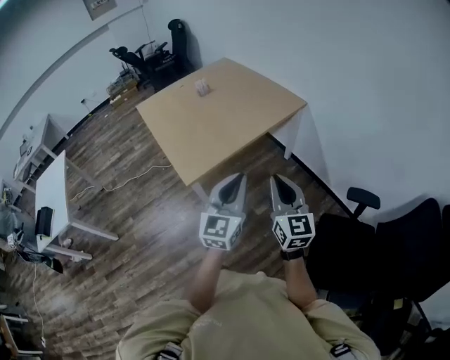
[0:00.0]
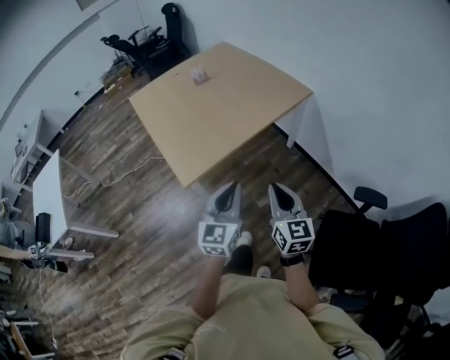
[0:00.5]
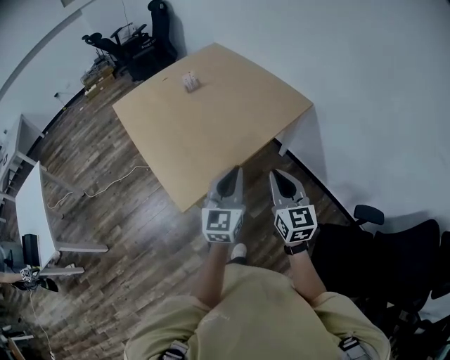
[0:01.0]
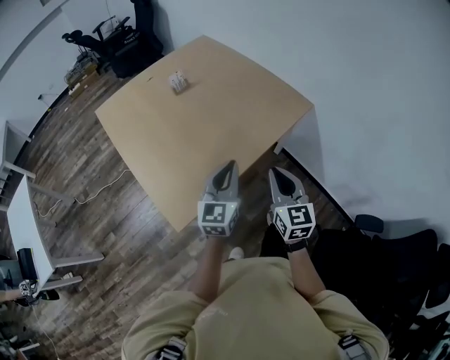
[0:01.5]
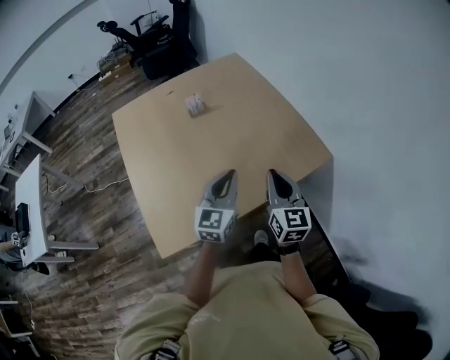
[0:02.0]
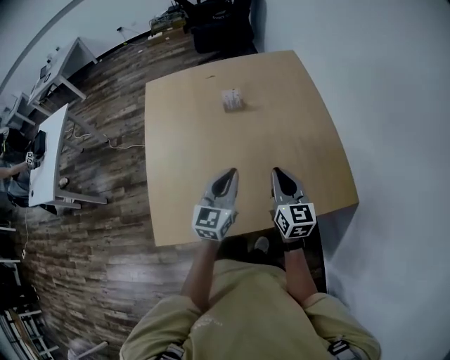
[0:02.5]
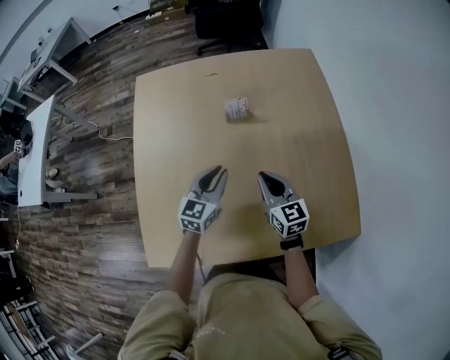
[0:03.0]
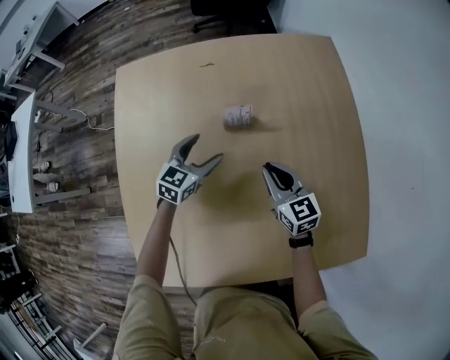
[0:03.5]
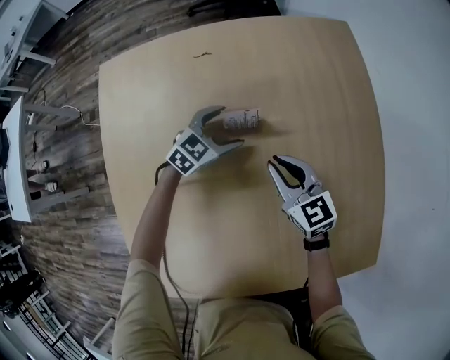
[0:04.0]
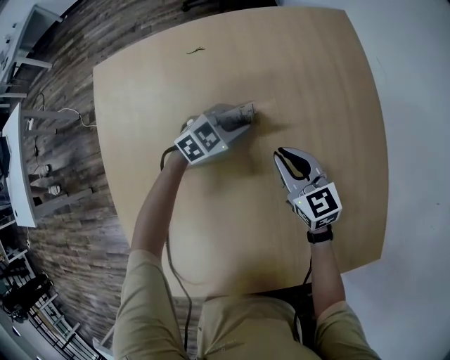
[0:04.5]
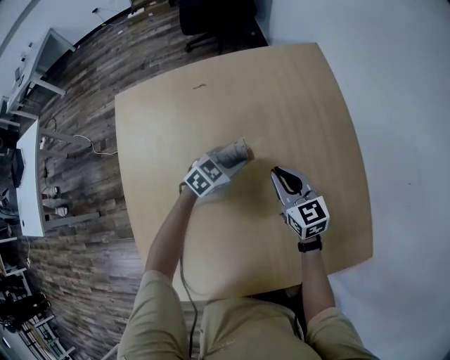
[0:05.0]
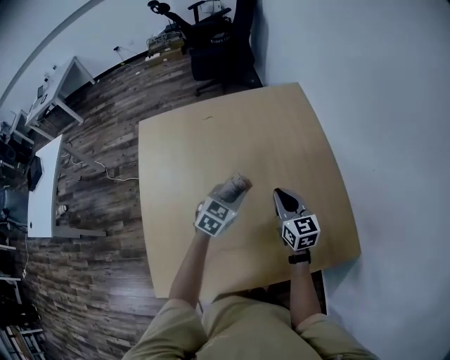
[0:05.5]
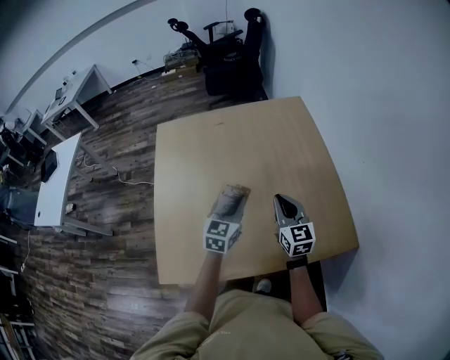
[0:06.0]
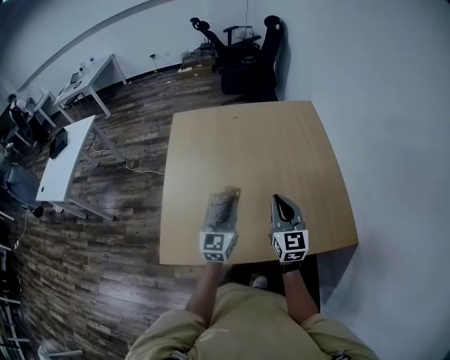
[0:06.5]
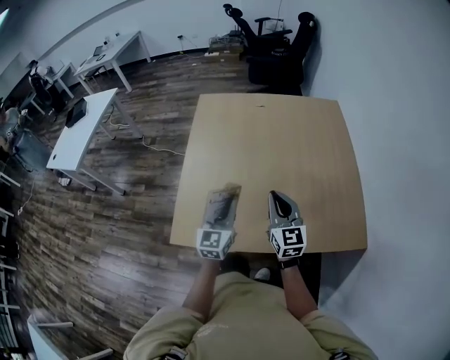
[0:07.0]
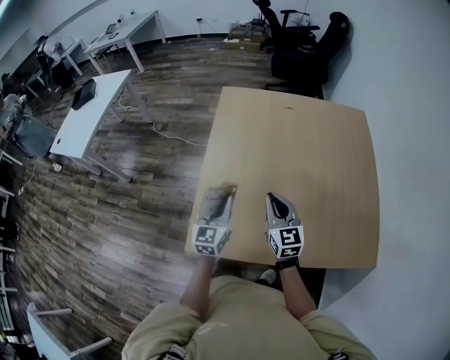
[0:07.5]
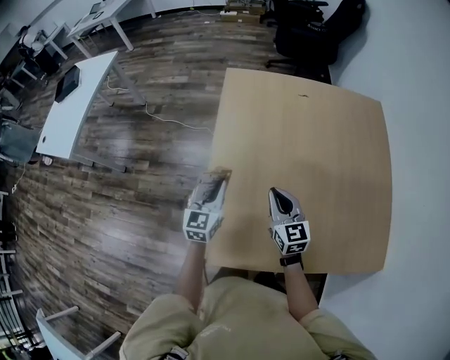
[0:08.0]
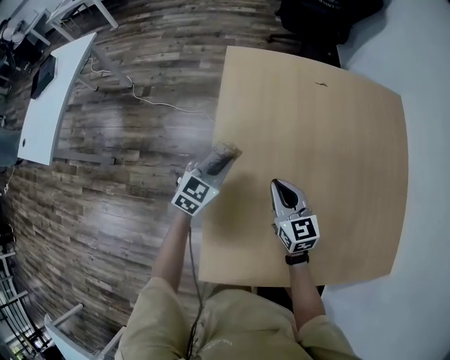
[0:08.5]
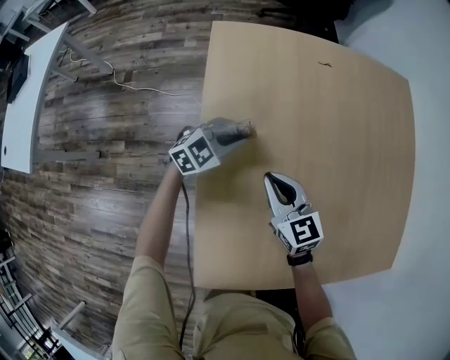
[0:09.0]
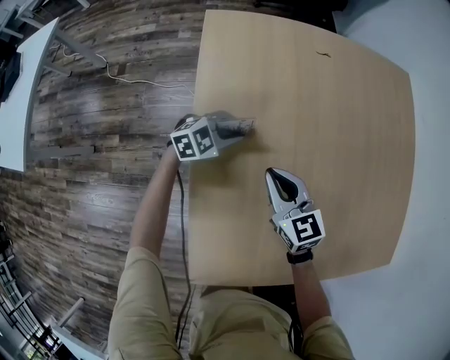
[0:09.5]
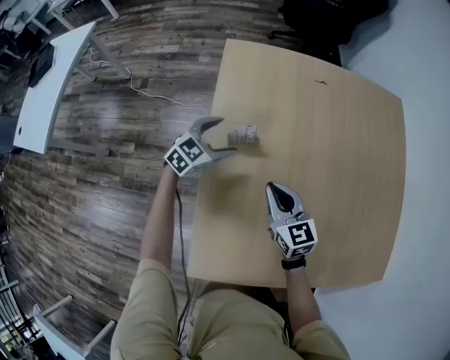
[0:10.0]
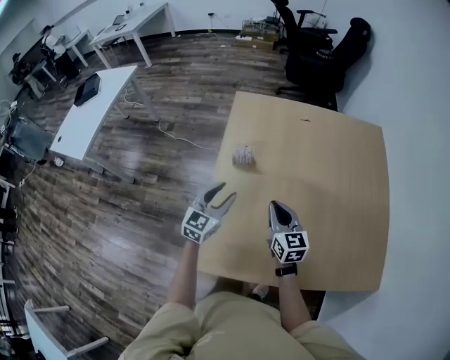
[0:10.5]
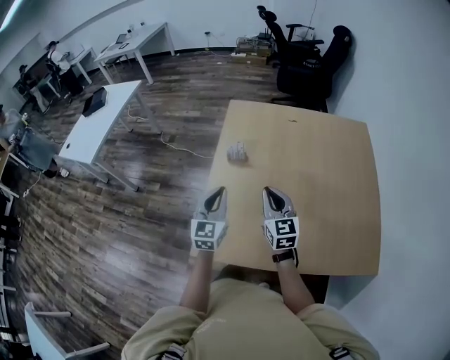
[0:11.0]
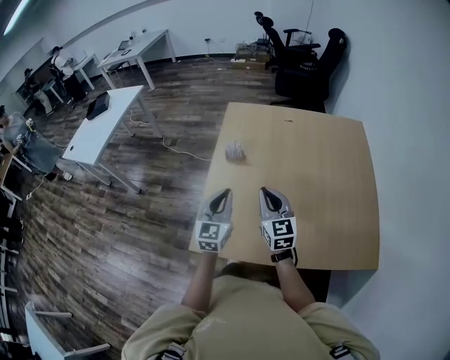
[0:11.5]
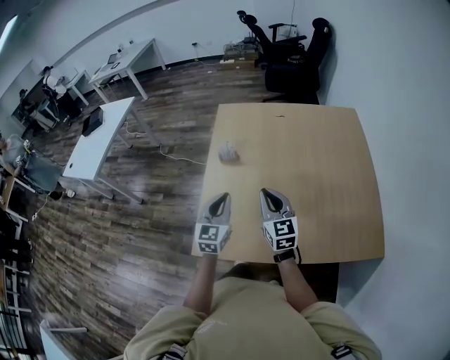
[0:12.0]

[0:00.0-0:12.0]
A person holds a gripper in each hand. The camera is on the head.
0:00.0 to 0:02.0: The two grippers travel together, forward, approximately 60 cm.
0:02.0 to 0:04.0: The two grippers travel together, approximately 50 cm. The right gripper swivels roughly 50 degrees, while the left gripper rotates some 30 degrees, and opens.
0:04.0 to 0:06.0: The right gripper travels backward, upward and to the right by approximately 35 cm, and swivels roughly 20 degrees, while the left gripper goes roughly 40 cm backward and upward, rotates approximately 40 degrees, and closes its fingers.
0:06.0 to 0:08.0: Both grippers travel together to the left, roughly 40 cm. The left gripper turns by approximately 20 degrees.
0:08.0 to 0:10.0: The left gripper moves about 25 cm, rotates some 40 degrees, and opens its fingers, while the right gripper moves approximately 15 cm.
0:10.0 to 0:12.0: The right gripper moves backward, upward and to the right, roughly 30 cm. Meanwhile the left gripper moves backward and upward, some 40 cm, rotates approximately 40 degrees, and closes.

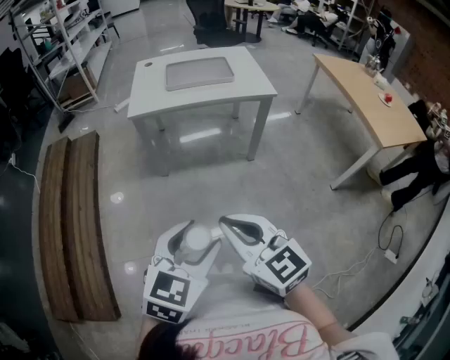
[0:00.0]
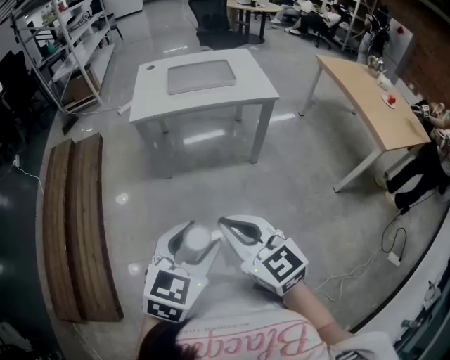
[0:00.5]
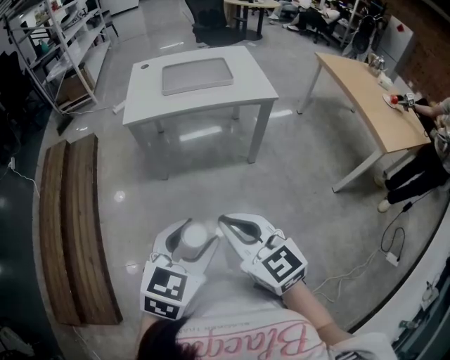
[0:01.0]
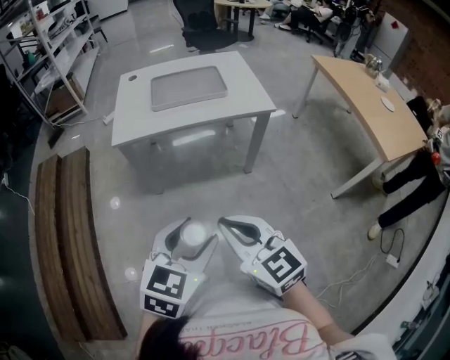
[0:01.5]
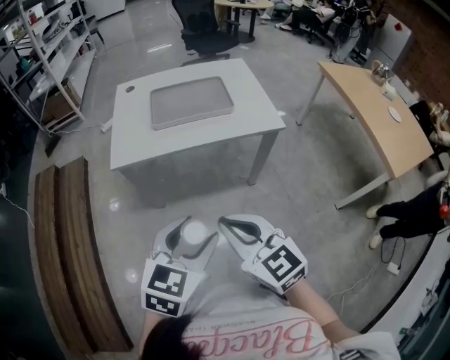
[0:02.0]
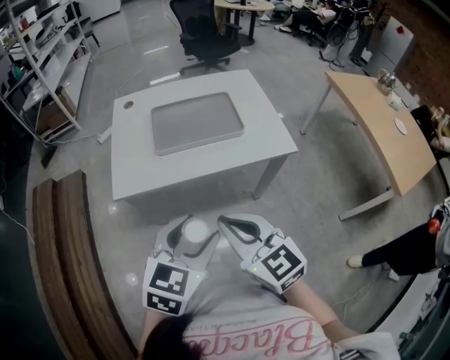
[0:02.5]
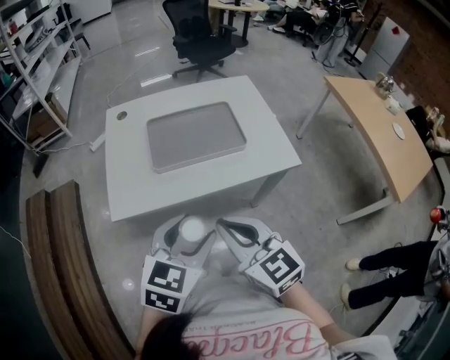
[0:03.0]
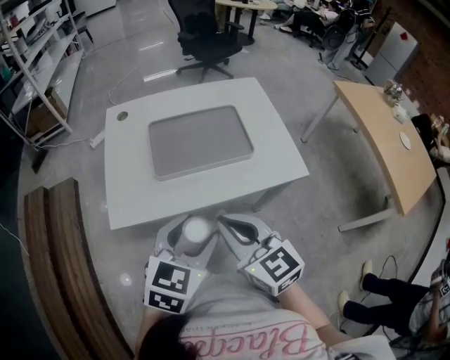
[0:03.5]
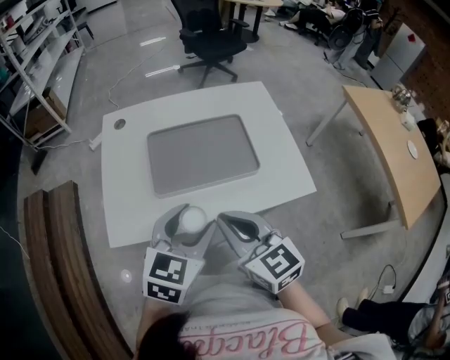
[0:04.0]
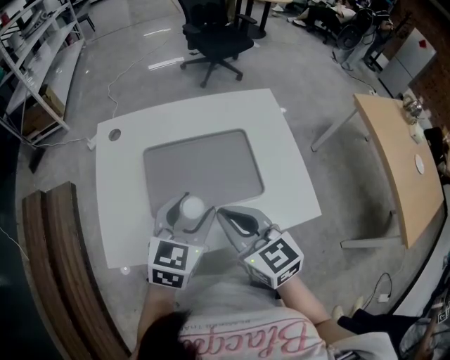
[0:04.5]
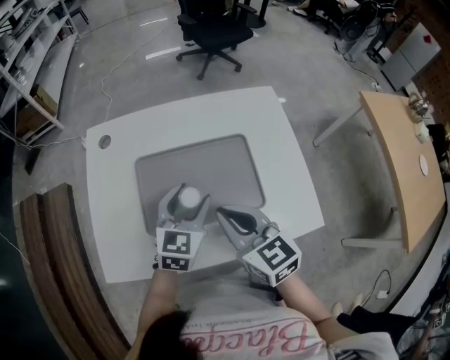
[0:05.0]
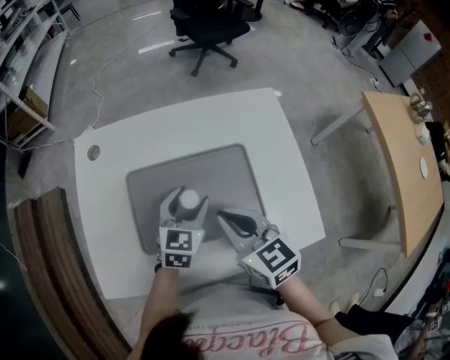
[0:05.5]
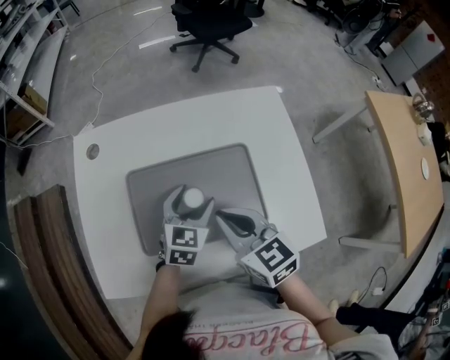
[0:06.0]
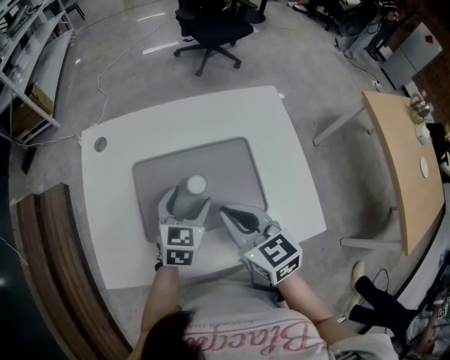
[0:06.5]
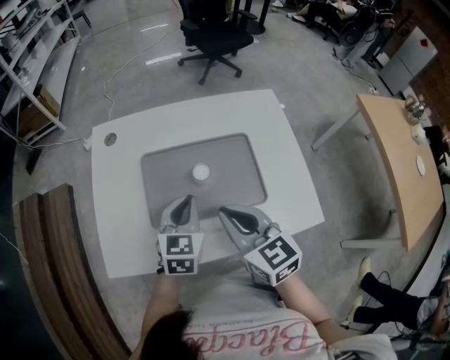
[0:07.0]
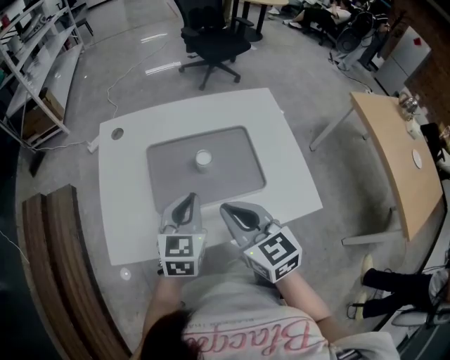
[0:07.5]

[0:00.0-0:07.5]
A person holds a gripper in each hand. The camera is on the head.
0:00.0 to 0:02.0: Both grippers move forward, some 20 cm.
0:02.0 to 0:04.0: The grippers both shift forward by some 25 cm.
0:04.0 to 0:05.5: The left gripper moves forward and downward, about 25 cm, while the right gripper goes about 15 cm forward.
0:05.5 to 0:07.5: The left gripper shifts approximately 10 cm backward and upward, and closes up. The right gripper moves backward, roughly 5 cm.

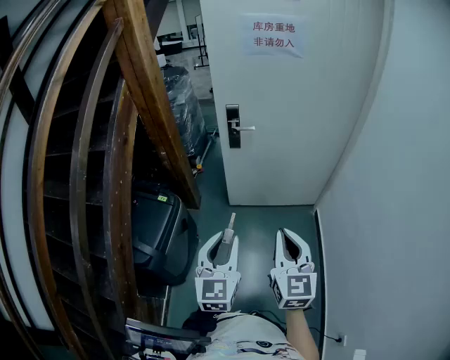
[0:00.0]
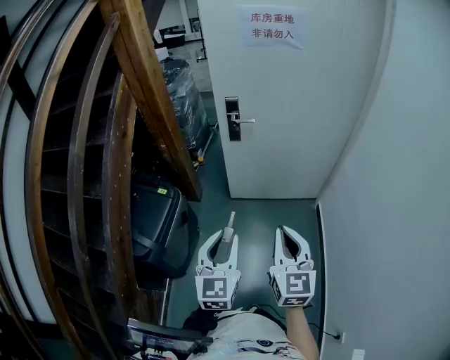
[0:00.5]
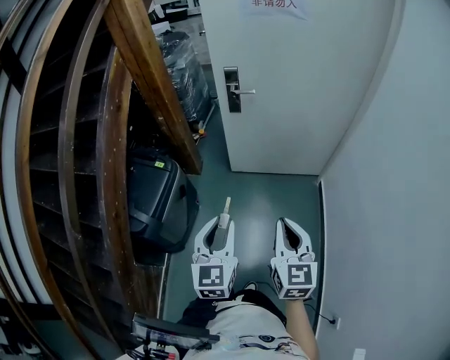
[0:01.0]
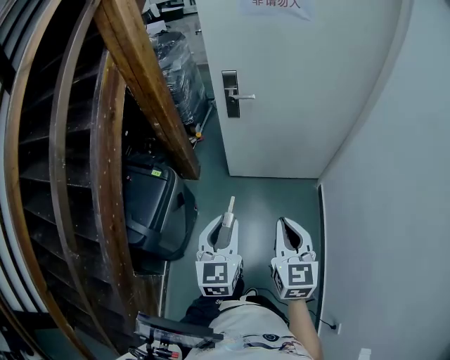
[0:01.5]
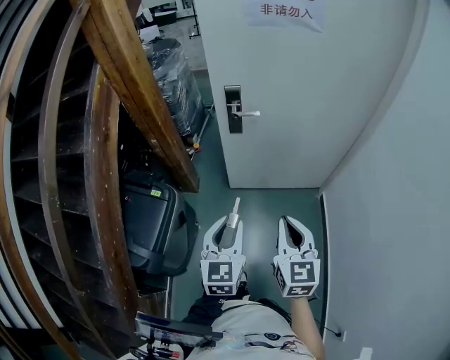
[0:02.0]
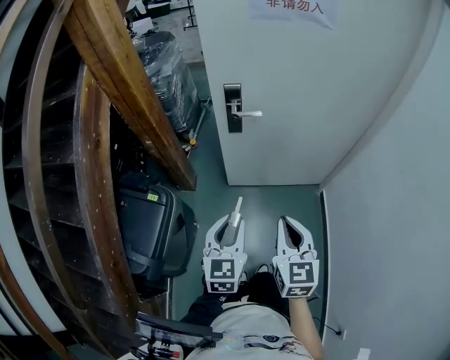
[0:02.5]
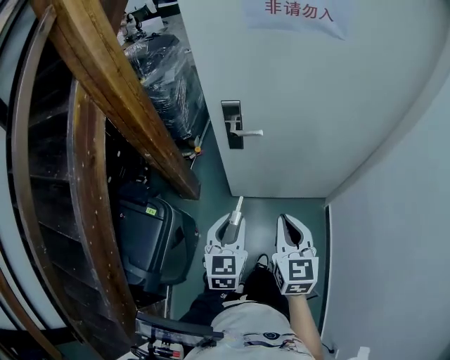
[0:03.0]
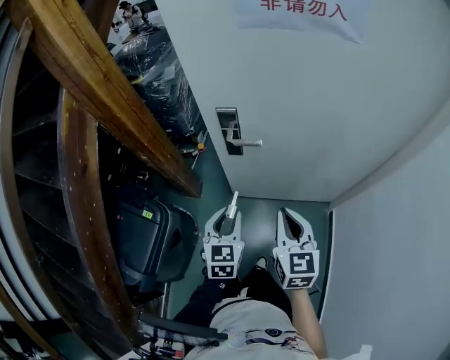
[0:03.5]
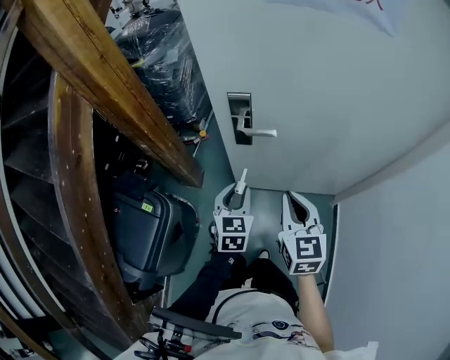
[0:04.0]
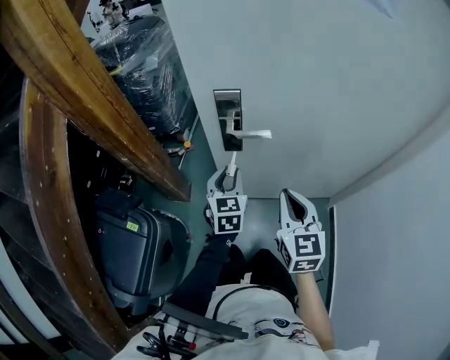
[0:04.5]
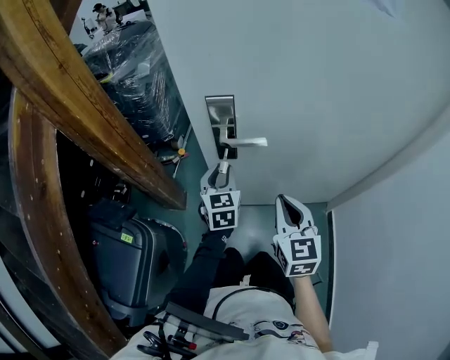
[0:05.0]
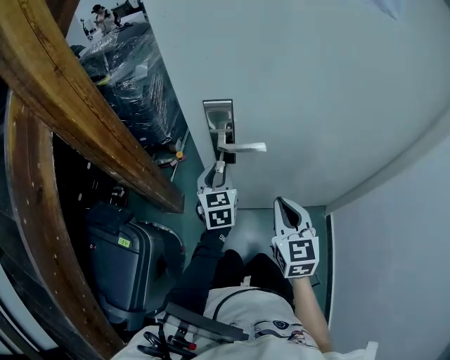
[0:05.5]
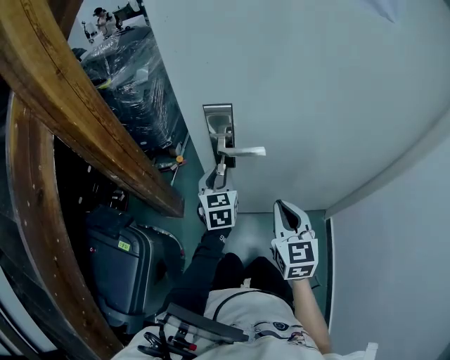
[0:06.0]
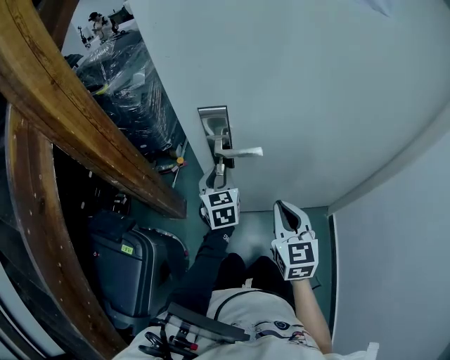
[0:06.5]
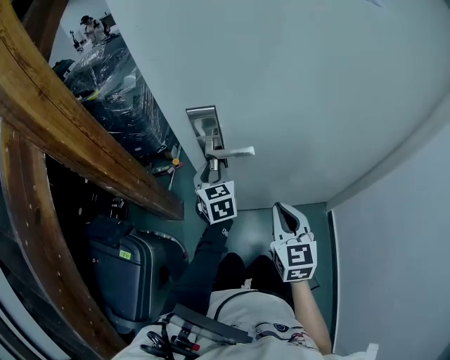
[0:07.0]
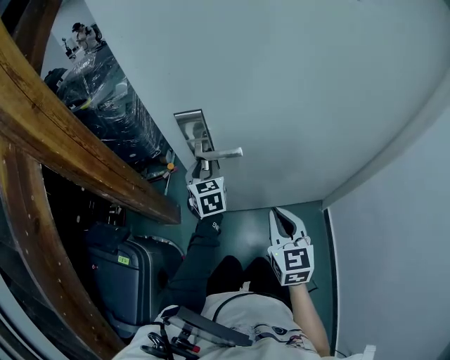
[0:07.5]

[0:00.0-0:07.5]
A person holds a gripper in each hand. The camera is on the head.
0:00.0 to 0:02.0: The right gripper travels forward by approximately 15 cm; the left gripper is displaced forward and downward by roughly 15 cm.
0:02.0 to 0:04.0: The right gripper is displaced forward by roughly 30 cm, while the left gripper moves forward and downward, approximately 35 cm.
0:04.0 to 0:05.5: The right gripper heads downward and forward, covering roughly 10 cm, while the left gripper heads forward, covering some 15 cm.
0:05.5 to 0:07.5: The left gripper travels forward by roughly 5 cm.
